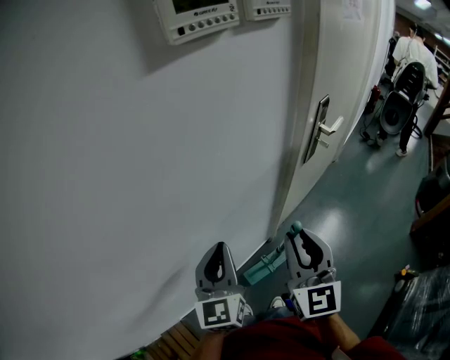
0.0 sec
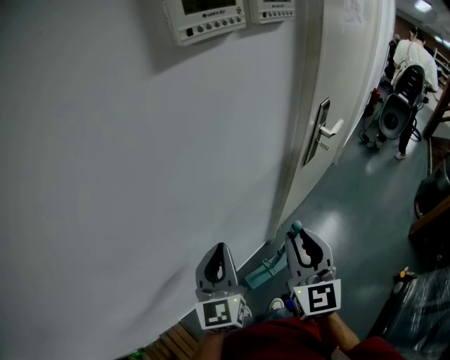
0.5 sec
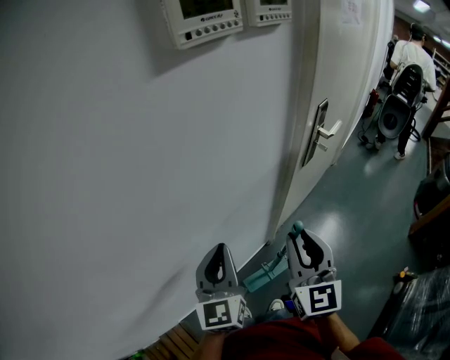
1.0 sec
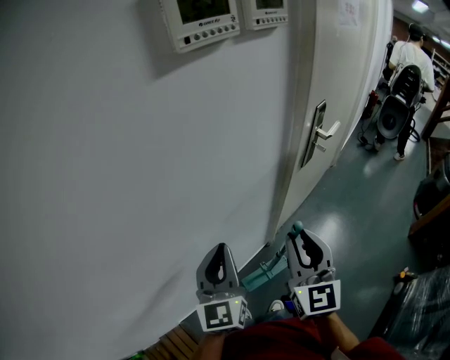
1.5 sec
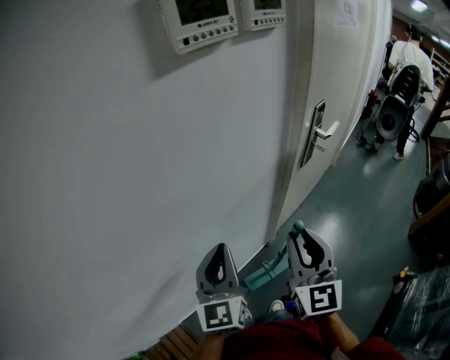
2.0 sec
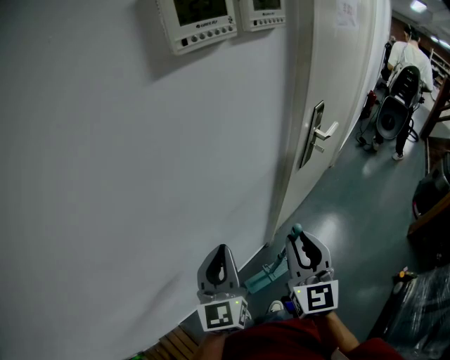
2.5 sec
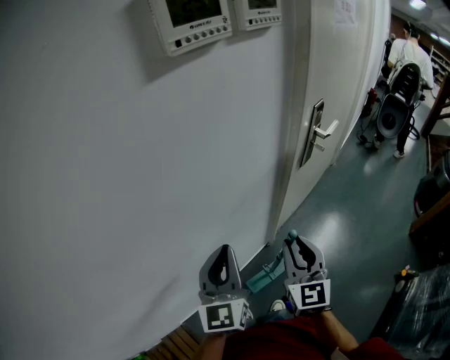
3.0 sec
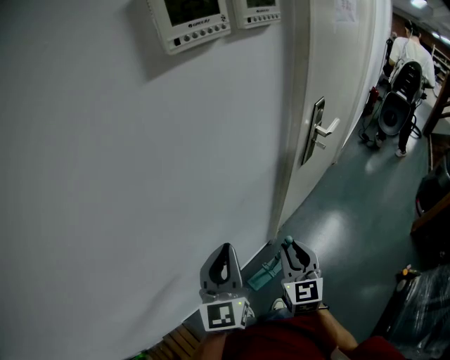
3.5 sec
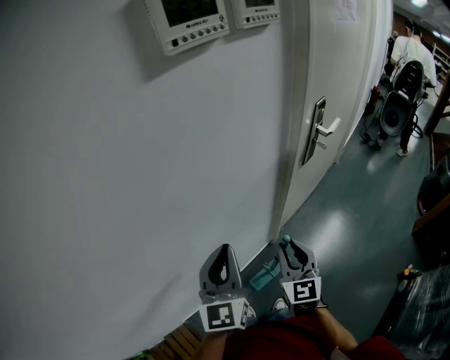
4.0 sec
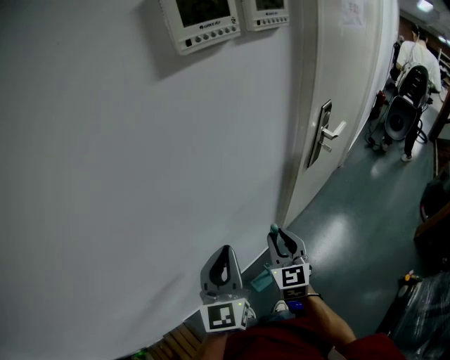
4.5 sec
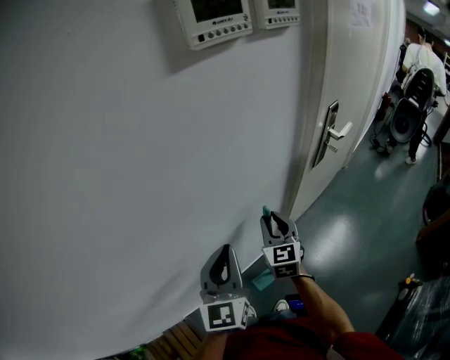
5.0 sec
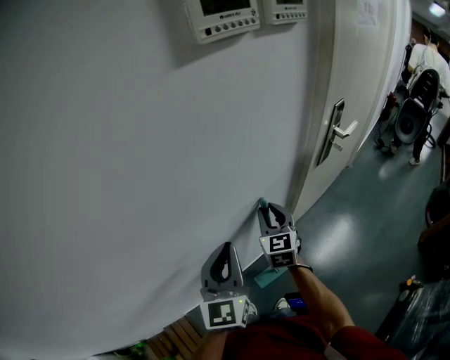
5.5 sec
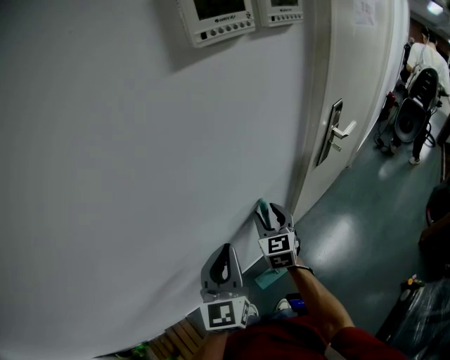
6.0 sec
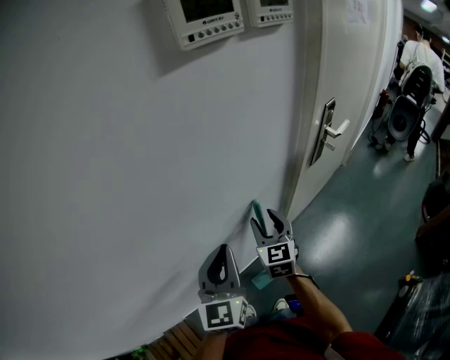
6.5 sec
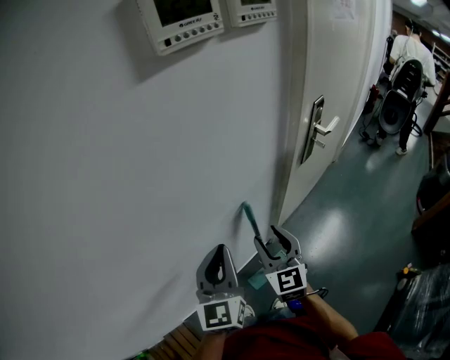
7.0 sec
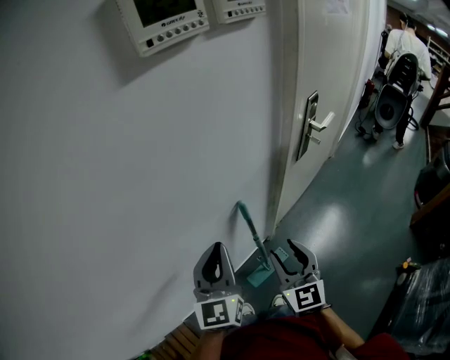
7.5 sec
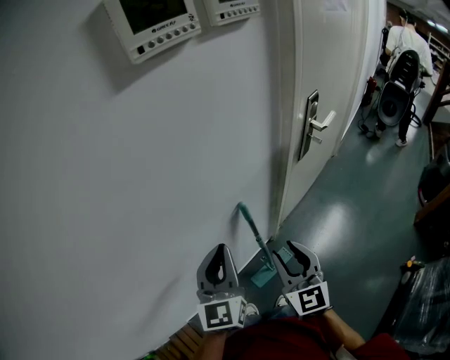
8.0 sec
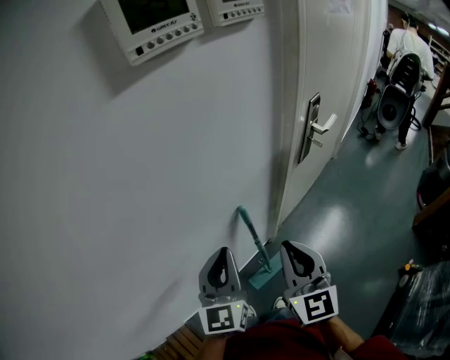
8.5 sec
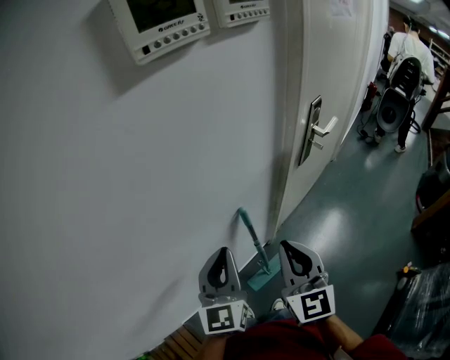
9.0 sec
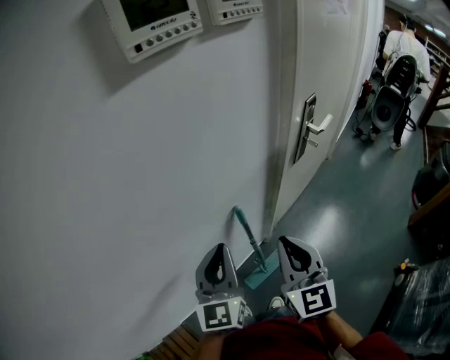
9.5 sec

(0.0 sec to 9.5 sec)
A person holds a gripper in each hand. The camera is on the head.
0.0 sec - 2.0 sec: The grippers move only a little.
2.0 sec - 4.0 sec: The right gripper goes roughly 15 cm downward.
4.0 sec - 5.5 sec: The right gripper moves forward and to the left, some 15 cm.
5.5 sec - 7.5 sec: The right gripper heads backward and to the right, covering some 15 cm.
7.5 sec - 9.5 sec: The right gripper heads upward, covering roughly 10 cm, and closes its fingers.

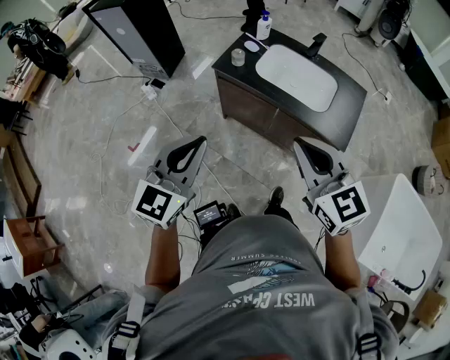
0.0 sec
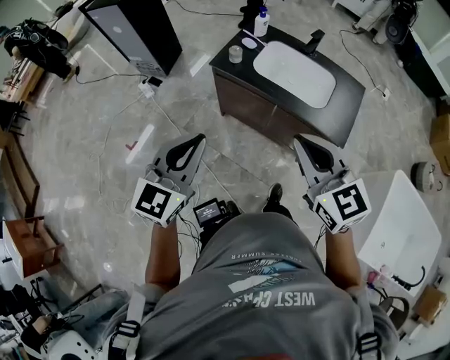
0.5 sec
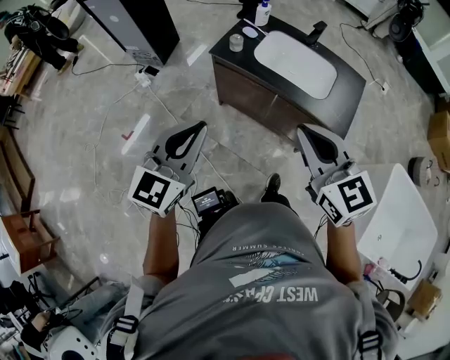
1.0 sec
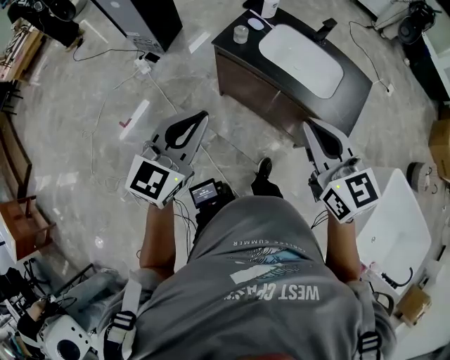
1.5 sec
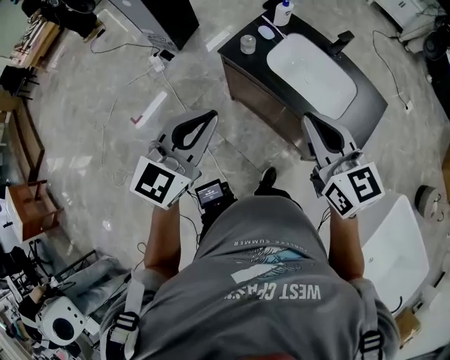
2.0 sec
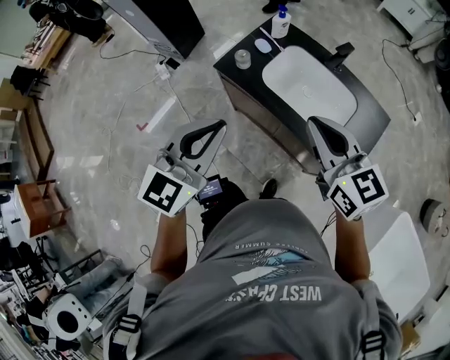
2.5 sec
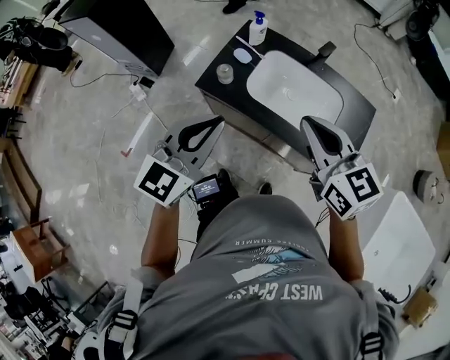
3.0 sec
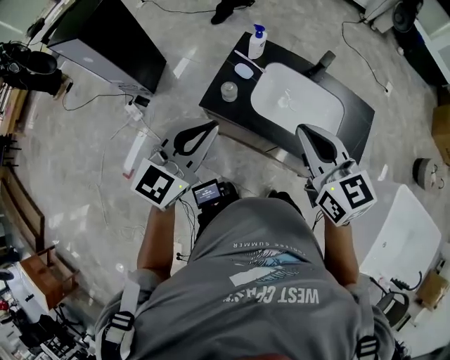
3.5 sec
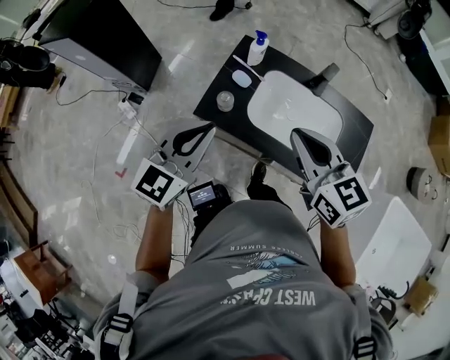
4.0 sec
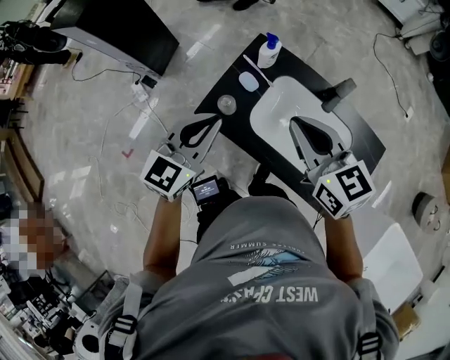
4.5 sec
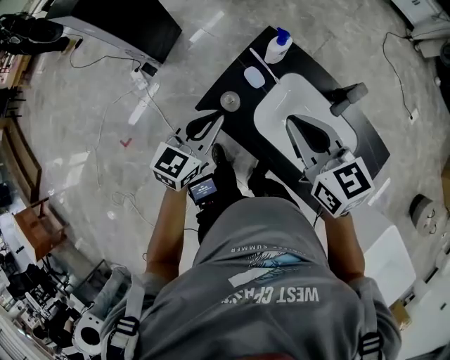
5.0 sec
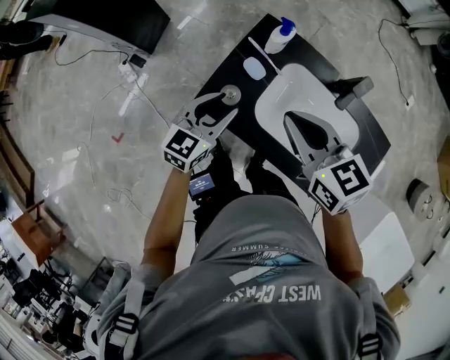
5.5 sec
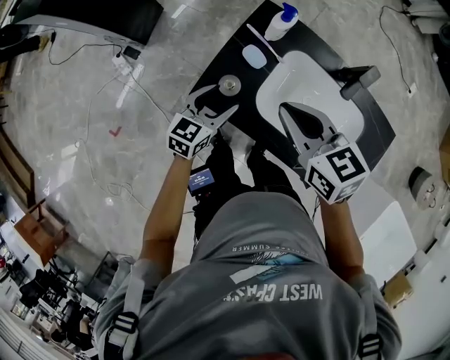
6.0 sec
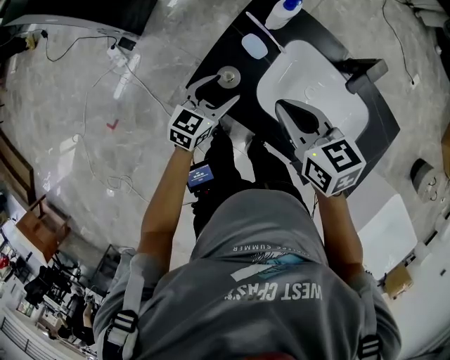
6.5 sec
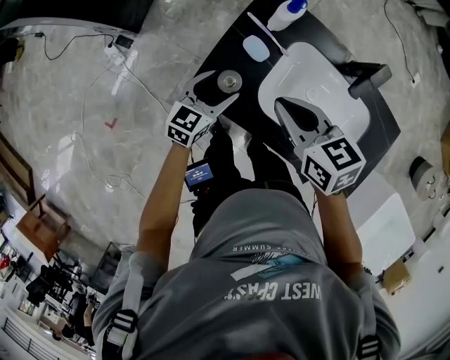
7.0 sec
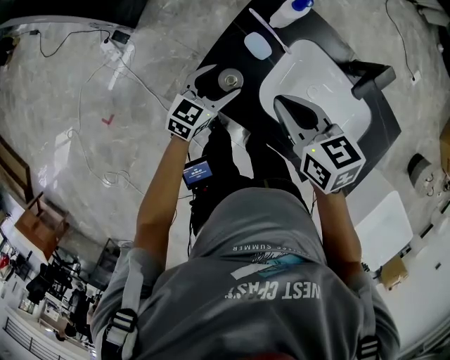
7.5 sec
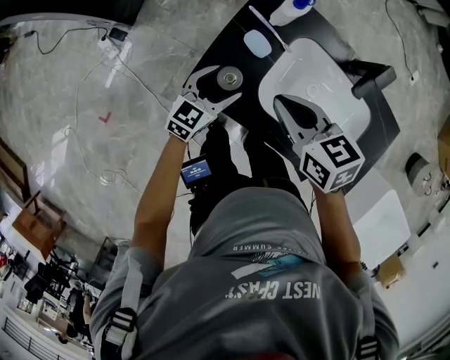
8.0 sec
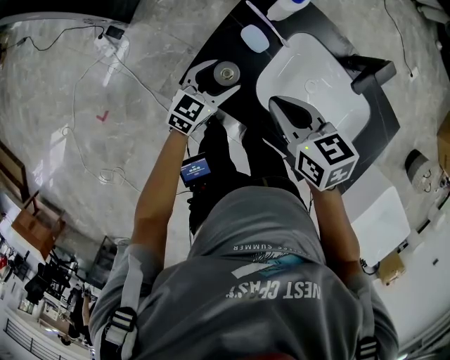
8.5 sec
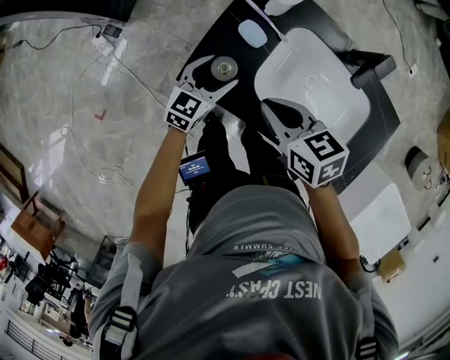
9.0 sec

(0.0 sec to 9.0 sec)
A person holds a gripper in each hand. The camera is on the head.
0.0 sec - 2.0 sec: The right gripper travels forward by some 15 cm, while the left gripper moves forward and to the right, some 10 cm.
2.0 sec - 4.5 sec: Both grippers travel together forward, some 25 cm.
4.5 sec - 7.0 sec: The left gripper moves downward, some 25 cm, and opens its fingers. The right gripper travels downward and to the left by roughly 15 cm, and turns by about 20 degrees.
7.0 sec - 9.0 sec: The right gripper heads downward, covering approximately 5 cm.

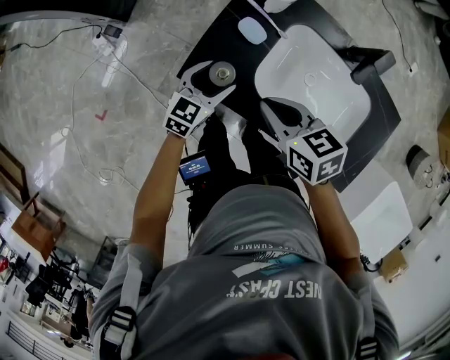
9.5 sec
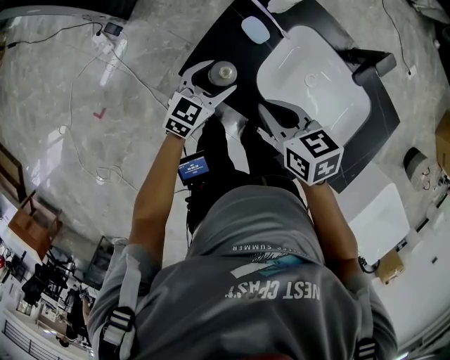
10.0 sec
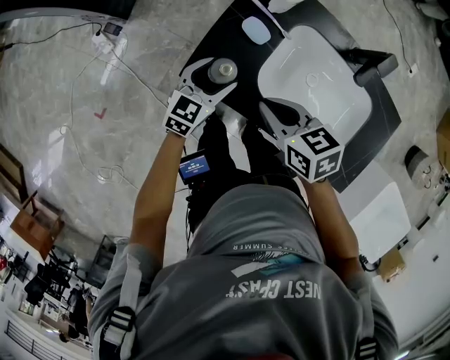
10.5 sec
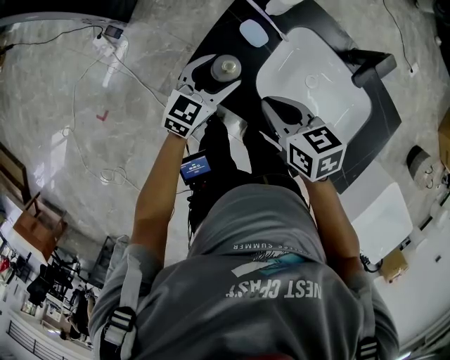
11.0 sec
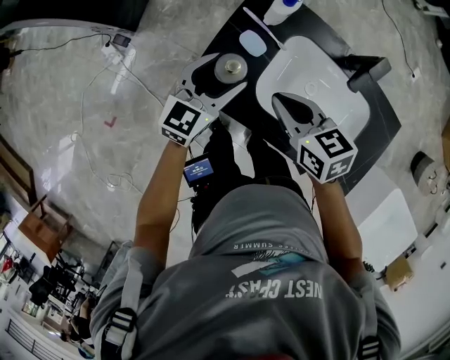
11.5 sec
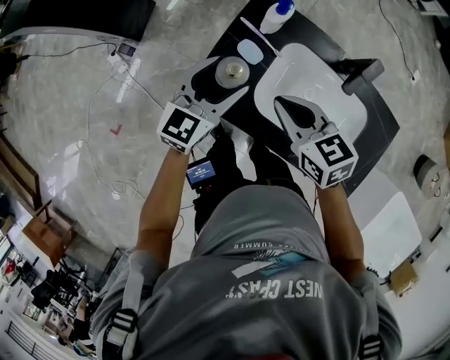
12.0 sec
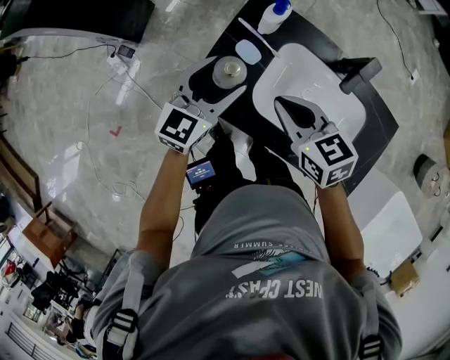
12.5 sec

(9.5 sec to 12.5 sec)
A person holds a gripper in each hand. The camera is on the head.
9.5 sec - 11.0 sec: There are only small adjustments of the grippers.
11.0 sec - 12.5 sec: The right gripper shifts roughly 5 cm upward, while the left gripper travels upward by approximately 15 cm.

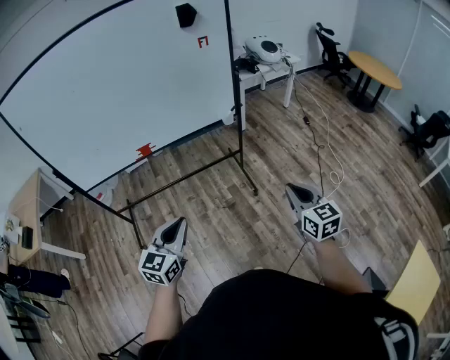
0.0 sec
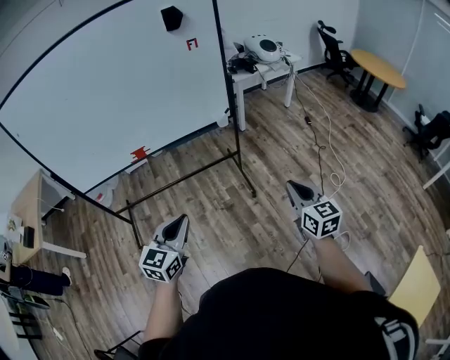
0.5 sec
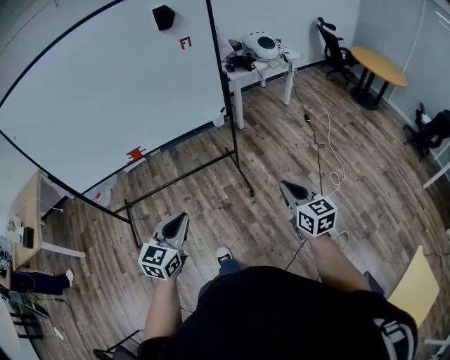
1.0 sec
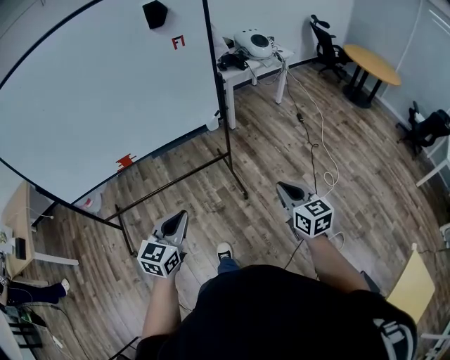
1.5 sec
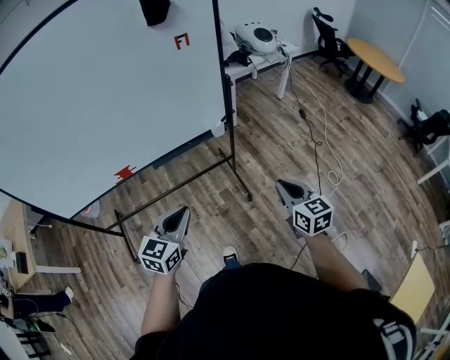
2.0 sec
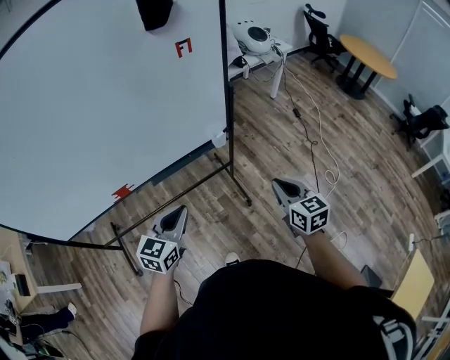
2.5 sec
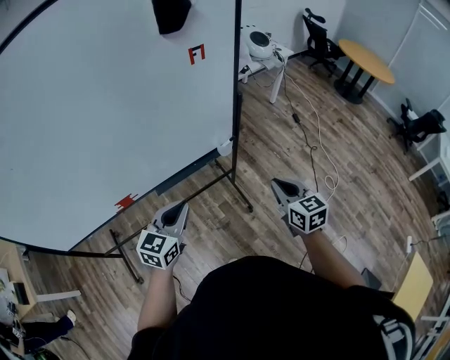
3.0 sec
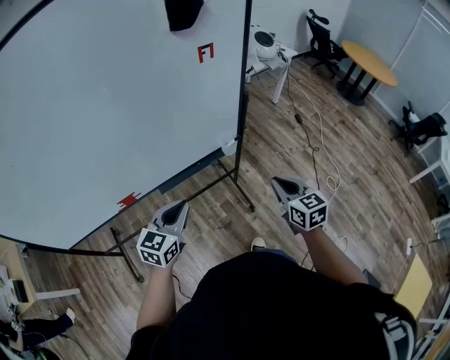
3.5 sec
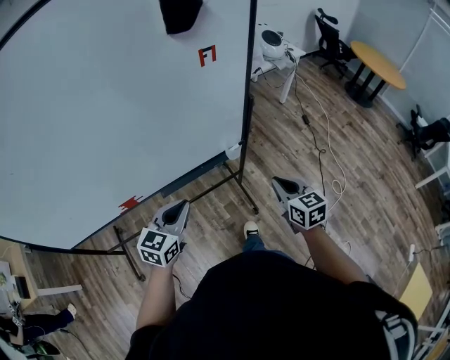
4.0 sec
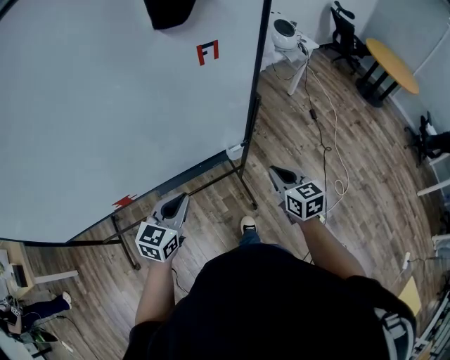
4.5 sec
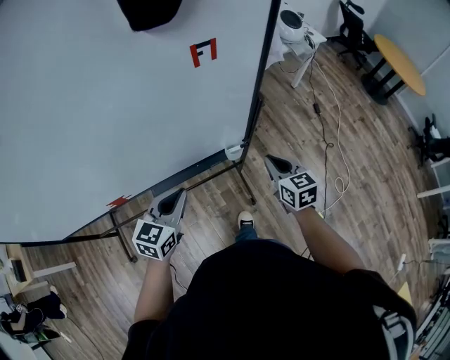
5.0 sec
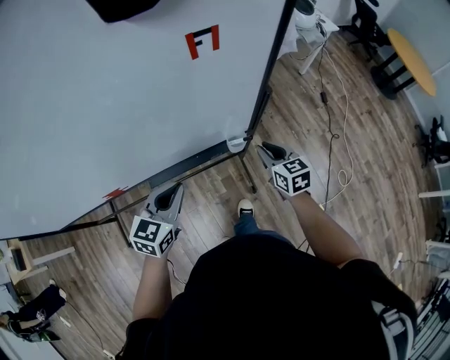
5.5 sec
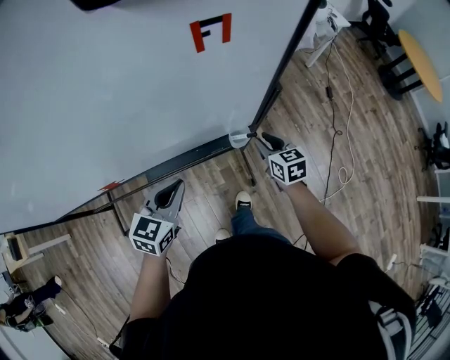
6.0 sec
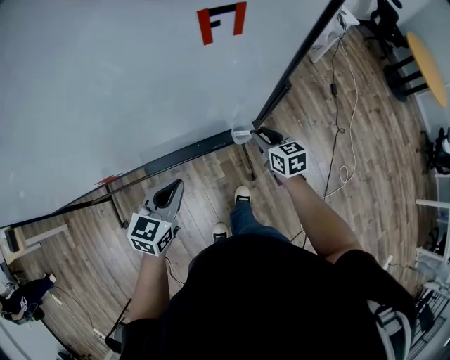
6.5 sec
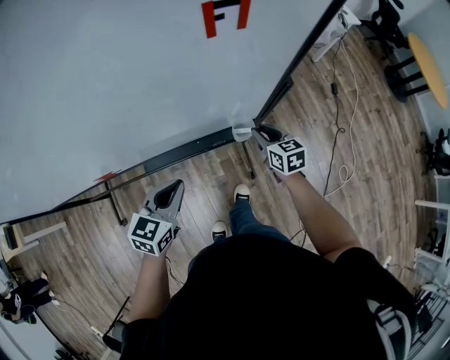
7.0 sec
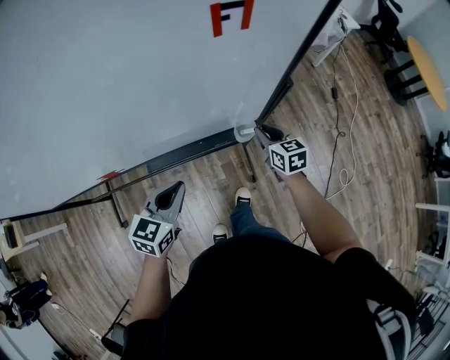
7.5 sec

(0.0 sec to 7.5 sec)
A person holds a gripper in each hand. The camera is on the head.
0.0 sec - 2.0 sec: Both grippers travel together forward, approximately 25 cm.
2.0 sec - 4.0 sec: The grippers both shift forward and to the left by some 20 cm.
4.0 sec - 5.5 sec: The right gripper heads forward and downward, covering roughly 25 cm. Meanwhile the left gripper shifts roughly 15 cm forward.
5.5 sec - 7.5 sec: The right gripper is displaced downward and forward by some 10 cm.
